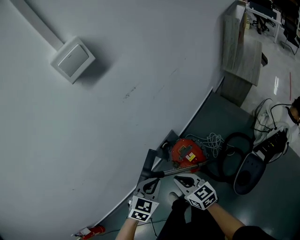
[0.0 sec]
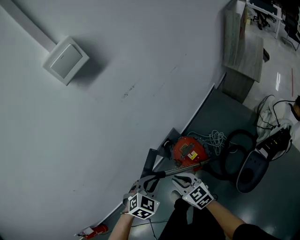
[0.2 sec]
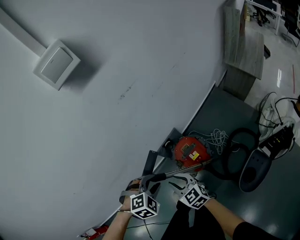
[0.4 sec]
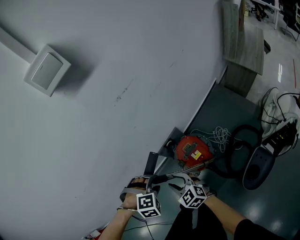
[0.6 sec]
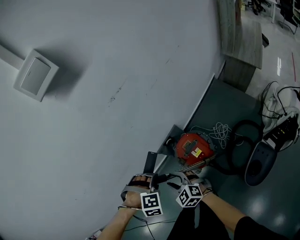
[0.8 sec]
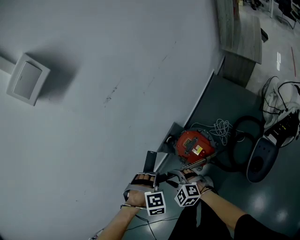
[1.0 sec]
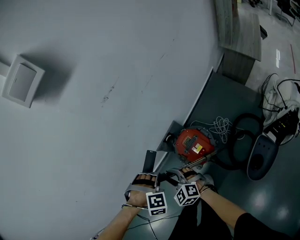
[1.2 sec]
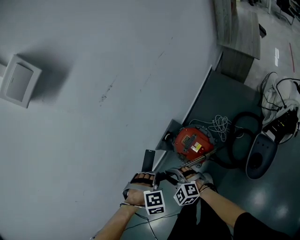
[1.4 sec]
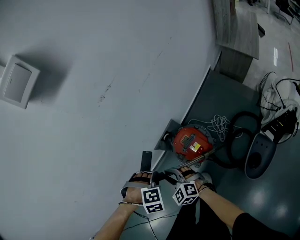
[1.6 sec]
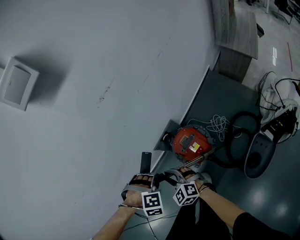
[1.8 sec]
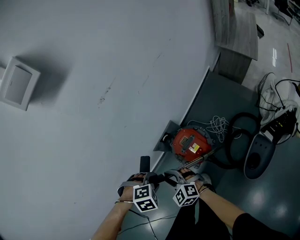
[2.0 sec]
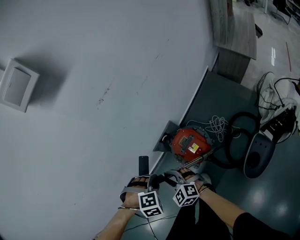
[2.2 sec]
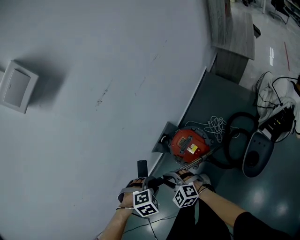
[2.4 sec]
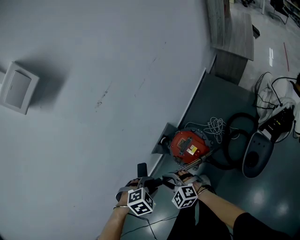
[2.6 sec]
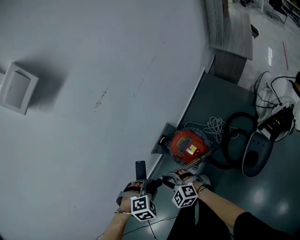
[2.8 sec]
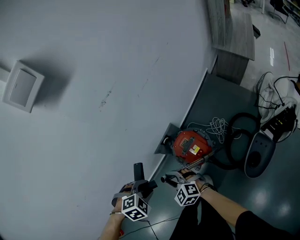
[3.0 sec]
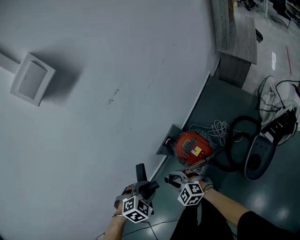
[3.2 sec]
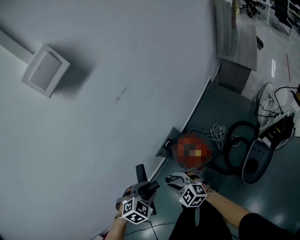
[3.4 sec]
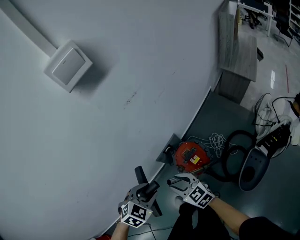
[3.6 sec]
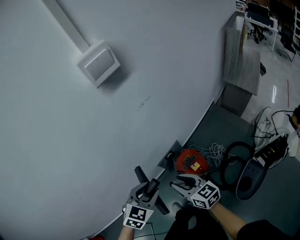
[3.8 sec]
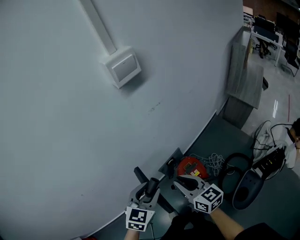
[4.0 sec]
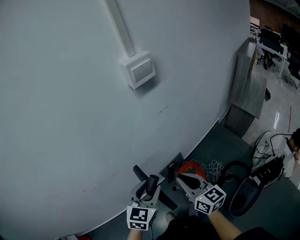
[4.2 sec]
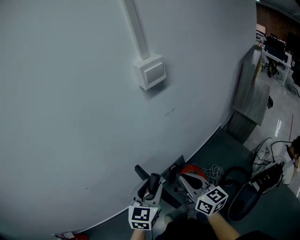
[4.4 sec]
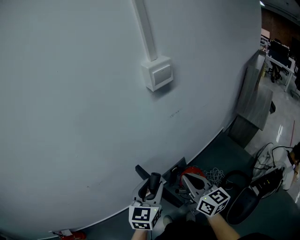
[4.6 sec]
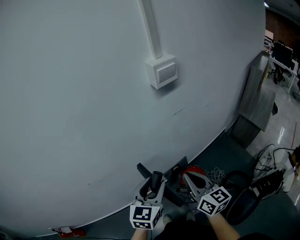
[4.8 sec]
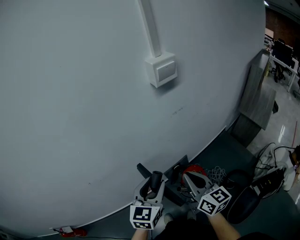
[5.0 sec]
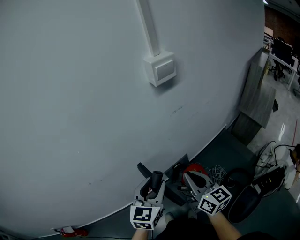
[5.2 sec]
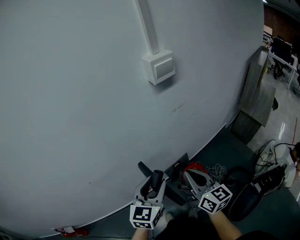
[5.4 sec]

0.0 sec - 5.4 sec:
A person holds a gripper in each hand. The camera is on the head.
0.0 sec - 1.4 sec: Both grippers travel together downward, some 10 cm. The right gripper rotates around the line of its fingers by some 40 degrees, counterclockwise from behind, and opens its fingers; the left gripper rotates around the line of its fingers by approximately 60 degrees, clockwise from behind, and opens.
2.8 sec - 4.0 sec: The grippers both shift upward by some 20 cm. The right gripper turns by about 50 degrees; the left gripper points its fingers approximately 50 degrees further upward.
4.0 sec - 5.4 sec: The two grippers go approximately 10 cm upward. The left gripper rotates roughly 20 degrees.

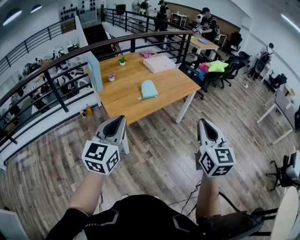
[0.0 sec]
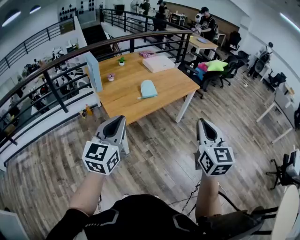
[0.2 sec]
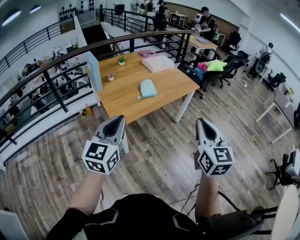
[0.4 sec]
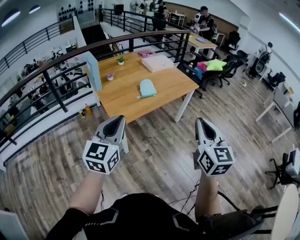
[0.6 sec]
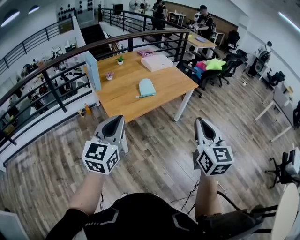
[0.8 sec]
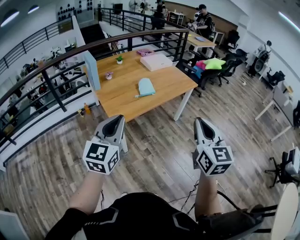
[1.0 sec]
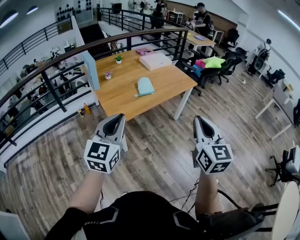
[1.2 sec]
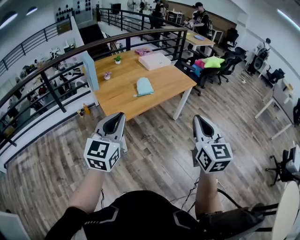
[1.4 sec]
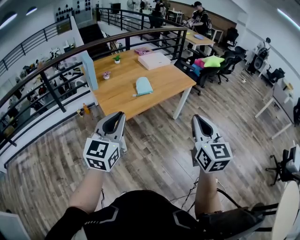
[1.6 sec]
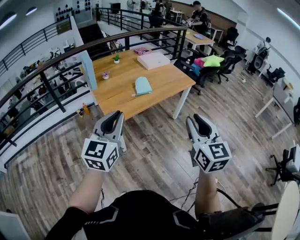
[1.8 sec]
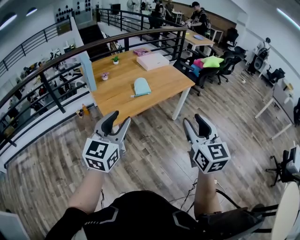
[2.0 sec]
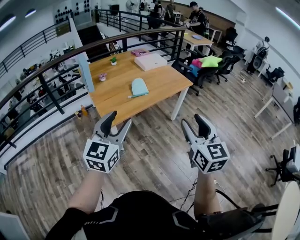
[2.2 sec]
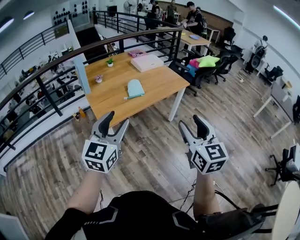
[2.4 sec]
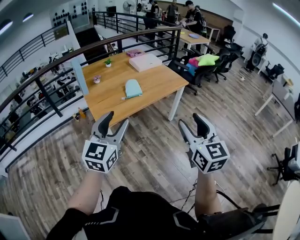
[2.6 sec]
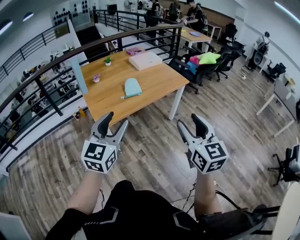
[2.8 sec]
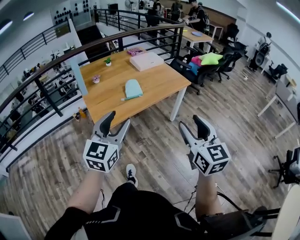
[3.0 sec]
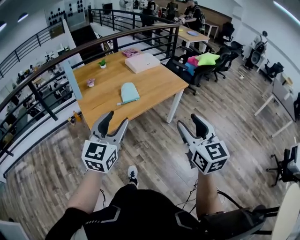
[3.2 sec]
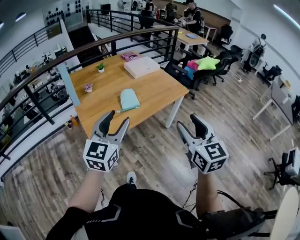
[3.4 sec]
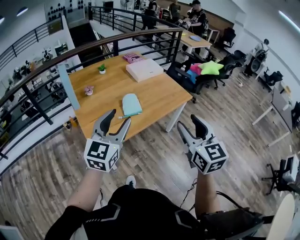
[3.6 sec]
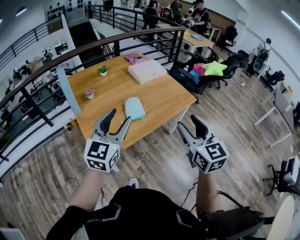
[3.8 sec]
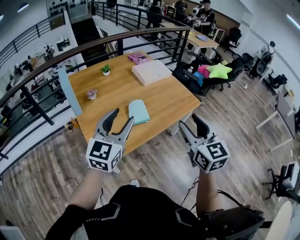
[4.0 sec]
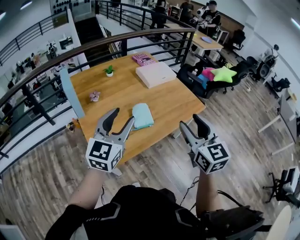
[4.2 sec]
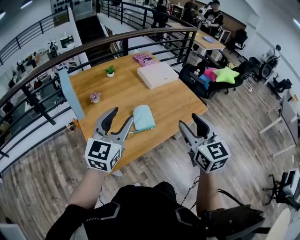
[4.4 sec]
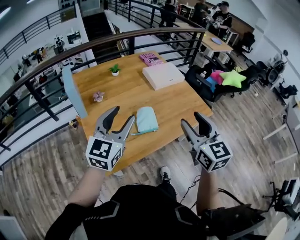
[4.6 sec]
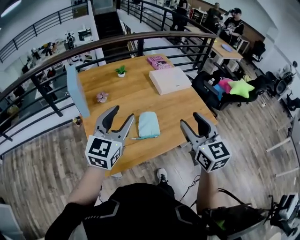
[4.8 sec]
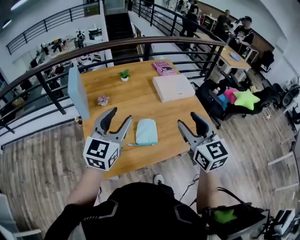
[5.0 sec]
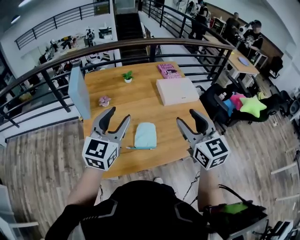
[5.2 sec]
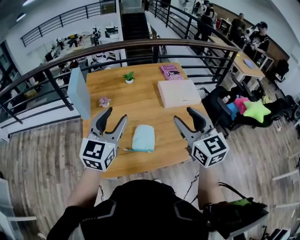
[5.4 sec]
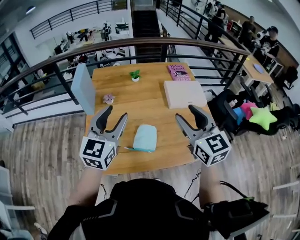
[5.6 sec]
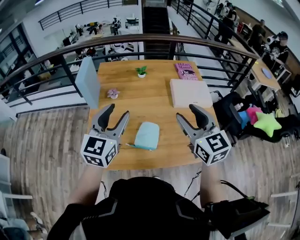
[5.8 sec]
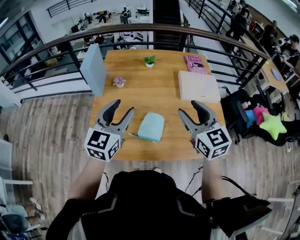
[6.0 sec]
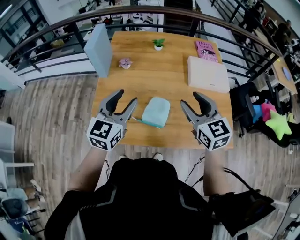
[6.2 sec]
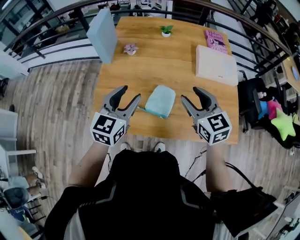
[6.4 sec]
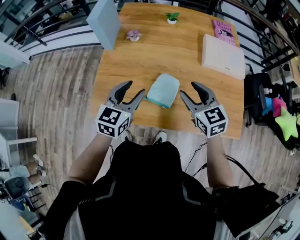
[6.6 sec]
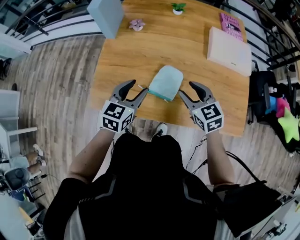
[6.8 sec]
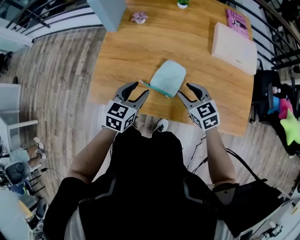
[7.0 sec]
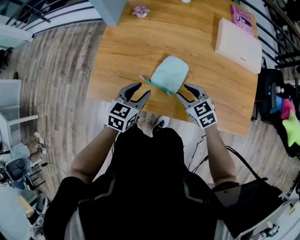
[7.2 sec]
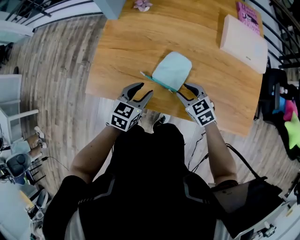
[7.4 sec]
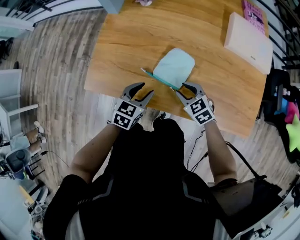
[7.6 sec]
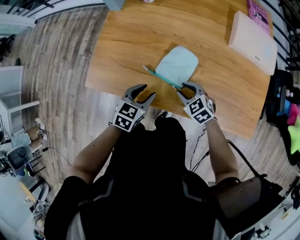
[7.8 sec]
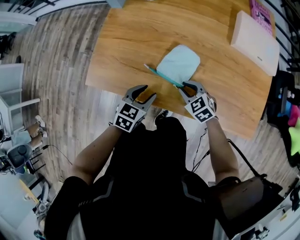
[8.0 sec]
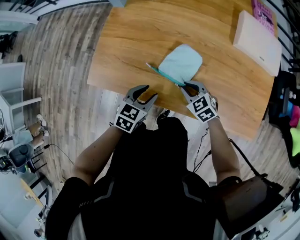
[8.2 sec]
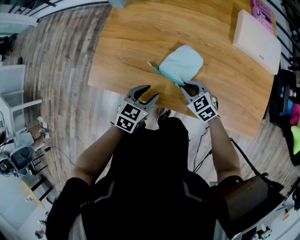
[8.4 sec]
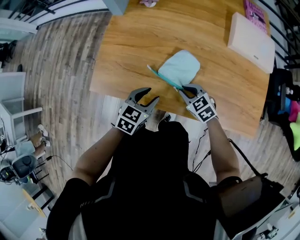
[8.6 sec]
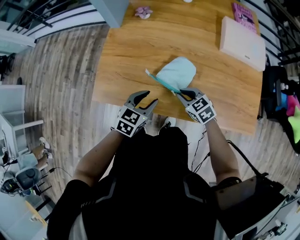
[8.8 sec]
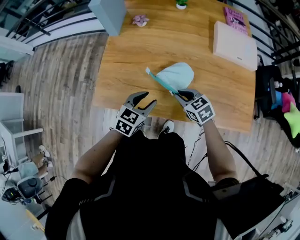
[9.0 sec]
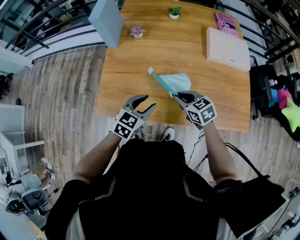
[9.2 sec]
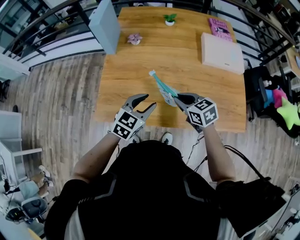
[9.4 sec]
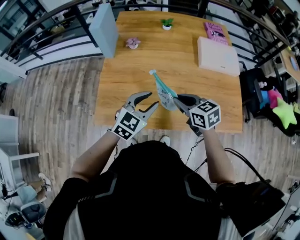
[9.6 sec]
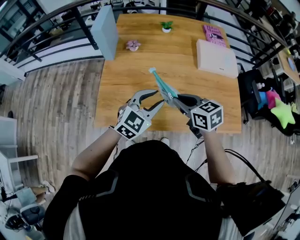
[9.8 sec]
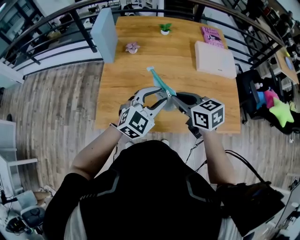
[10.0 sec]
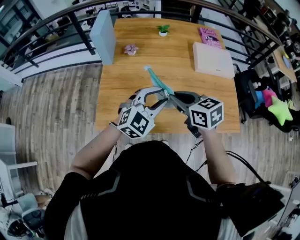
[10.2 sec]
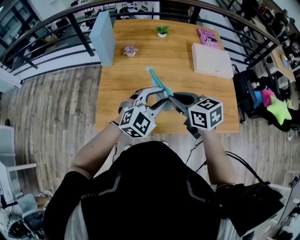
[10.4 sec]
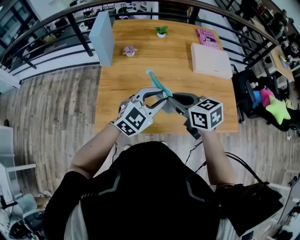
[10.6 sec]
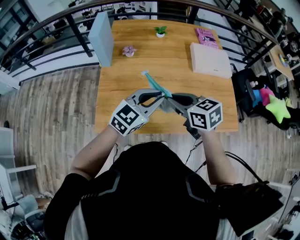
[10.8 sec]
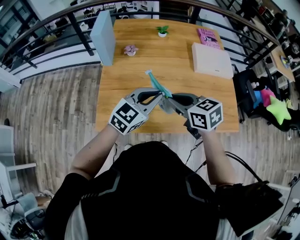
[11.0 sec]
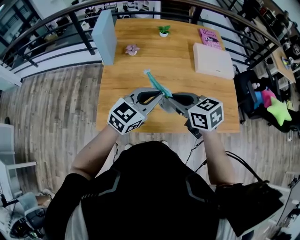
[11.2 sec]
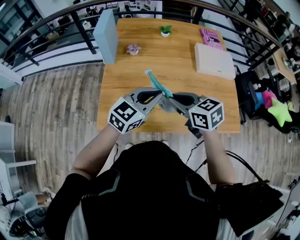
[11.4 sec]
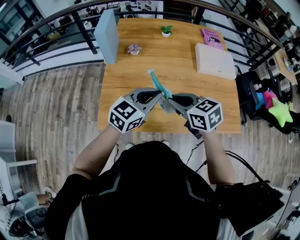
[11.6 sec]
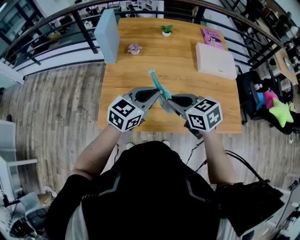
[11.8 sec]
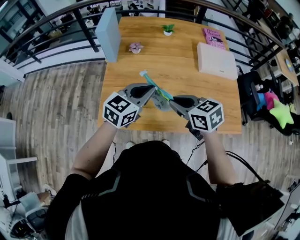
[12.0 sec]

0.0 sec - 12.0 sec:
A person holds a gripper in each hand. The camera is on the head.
0.0 sec - 1.6 sec: The grippers move only a little.
1.6 sec - 3.0 sec: The two grippers go about 10 cm to the right and forward. The left gripper opens its fingers. Meanwhile the right gripper opens its fingers.
3.0 sec - 4.4 sec: The grippers both shift forward by about 35 cm.
4.4 sec - 6.0 sec: The right gripper ends up approximately 25 cm from where it was, and turns by some 40 degrees. The left gripper changes place by some 10 cm, and turns by some 30 degrees.
6.0 sec - 7.6 sec: Both grippers move downward, approximately 35 cm. The left gripper tips its fingers downward by about 30 degrees. Meanwhile the right gripper points its fingers approximately 30 degrees further downward.
7.6 sec - 9.0 sec: The two grippers go some 5 cm upward. The right gripper closes.
9.0 sec - 10.4 sec: The two grippers go about 20 cm upward. The left gripper rotates around the line of its fingers by approximately 40 degrees, clockwise from behind.
10.4 sec - 12.0 sec: The left gripper moves to the left, approximately 5 cm, swivels approximately 40 degrees, and closes its fingers.

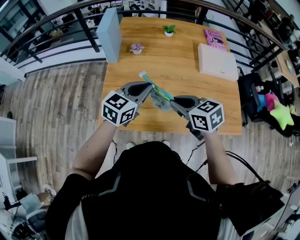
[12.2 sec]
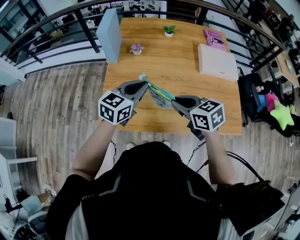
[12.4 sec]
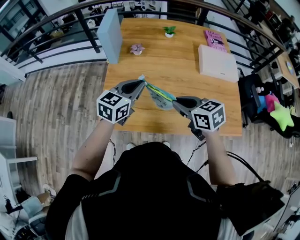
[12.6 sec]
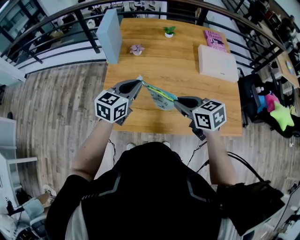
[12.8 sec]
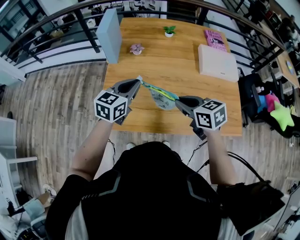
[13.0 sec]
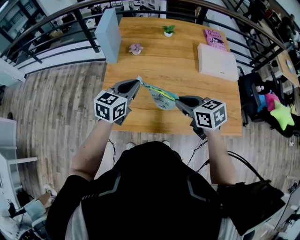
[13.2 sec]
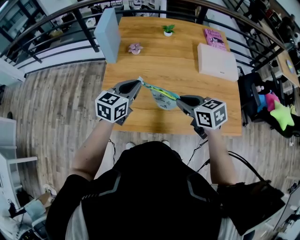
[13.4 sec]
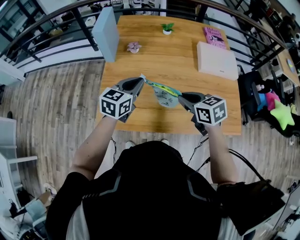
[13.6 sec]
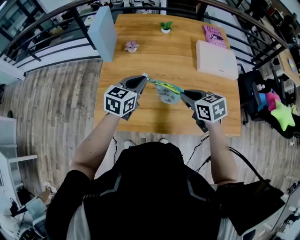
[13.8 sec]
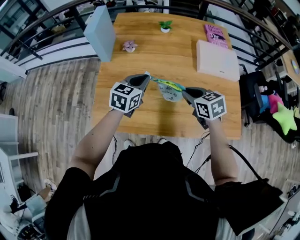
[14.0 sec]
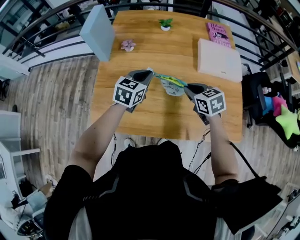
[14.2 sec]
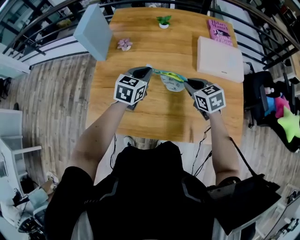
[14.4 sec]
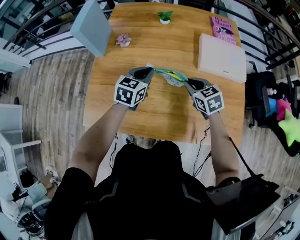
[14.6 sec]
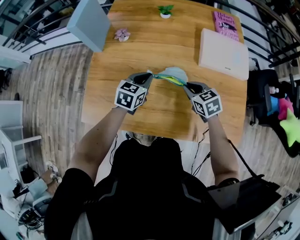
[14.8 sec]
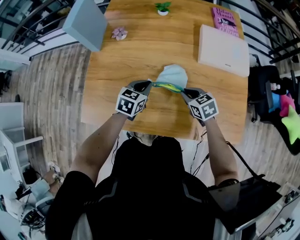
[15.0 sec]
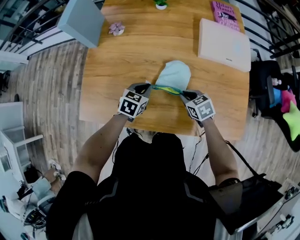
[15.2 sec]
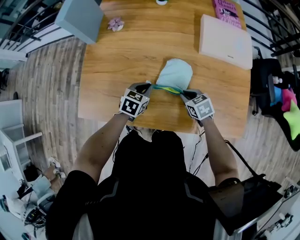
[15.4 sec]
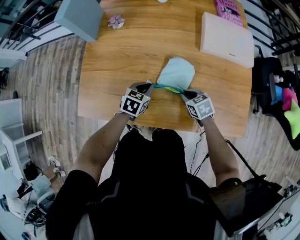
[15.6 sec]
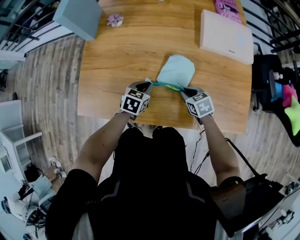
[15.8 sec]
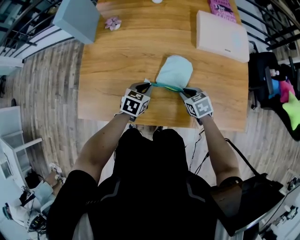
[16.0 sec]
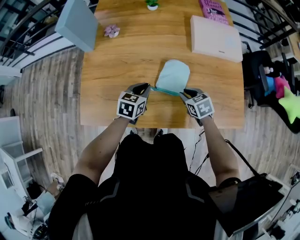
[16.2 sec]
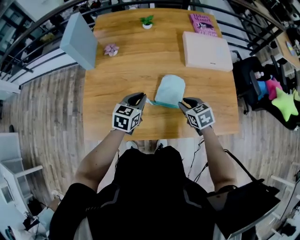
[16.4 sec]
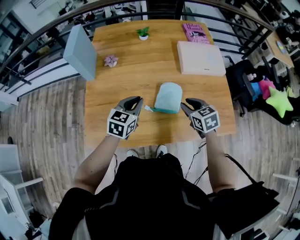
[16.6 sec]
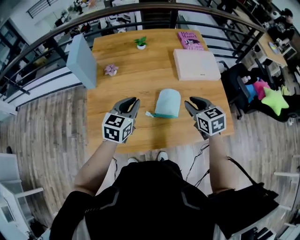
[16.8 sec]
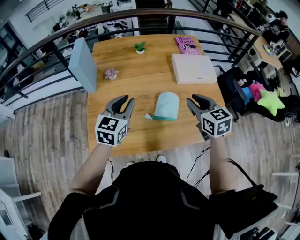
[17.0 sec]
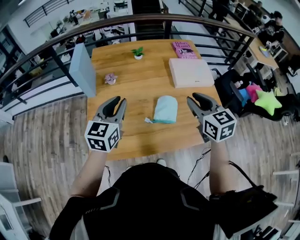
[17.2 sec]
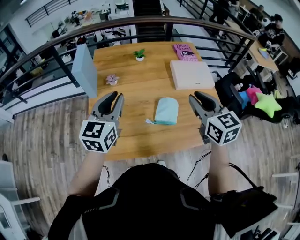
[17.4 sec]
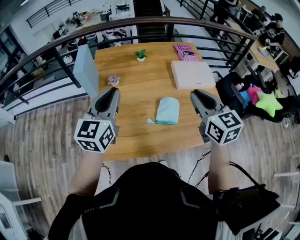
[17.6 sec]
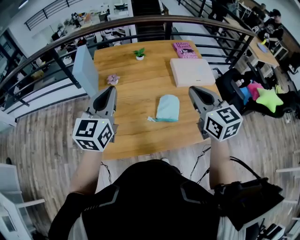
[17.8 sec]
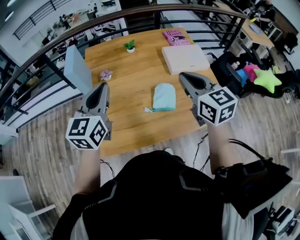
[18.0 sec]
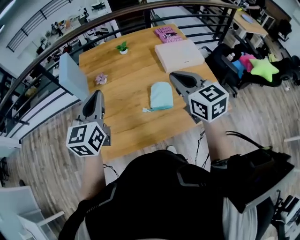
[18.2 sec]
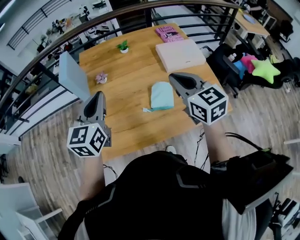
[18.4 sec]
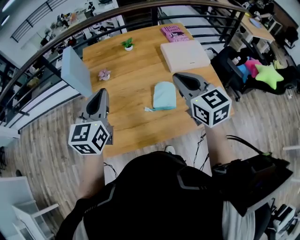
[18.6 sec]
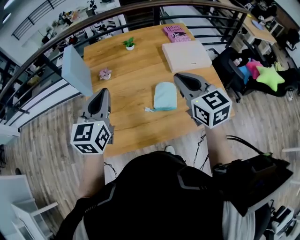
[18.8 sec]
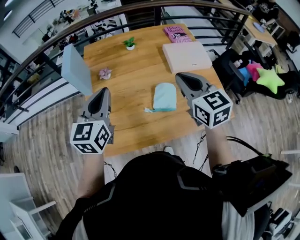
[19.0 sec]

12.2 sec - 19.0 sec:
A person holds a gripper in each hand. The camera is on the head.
12.2 sec - 13.6 sec: The left gripper changes place by roughly 5 cm; the right gripper shifts roughly 5 cm to the right.
13.6 sec - 15.0 sec: The two grippers go some 20 cm downward and to the right. The left gripper rotates some 20 degrees.
16.2 sec - 17.6 sec: The two grippers go about 35 cm upward. The left gripper points its fingers roughly 40 degrees further upward, while the right gripper angles its fingers upward, by approximately 40 degrees.
17.6 sec - 19.0 sec: The grippers stay close to where they were, moving slightly.
